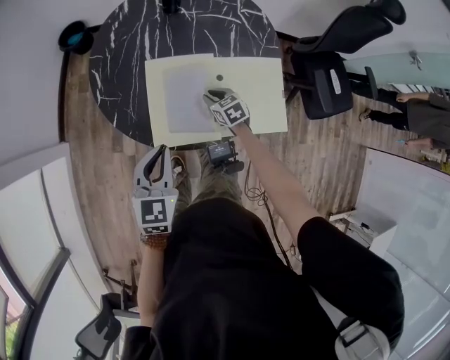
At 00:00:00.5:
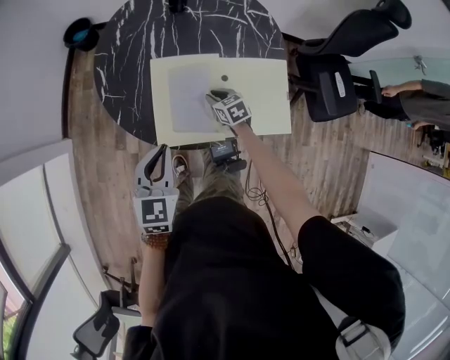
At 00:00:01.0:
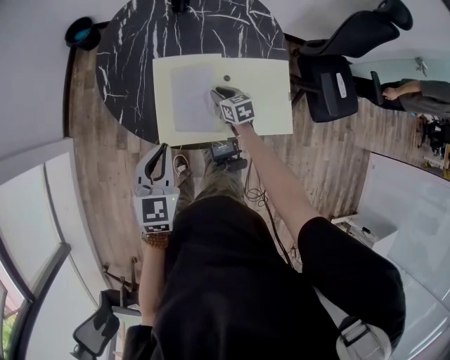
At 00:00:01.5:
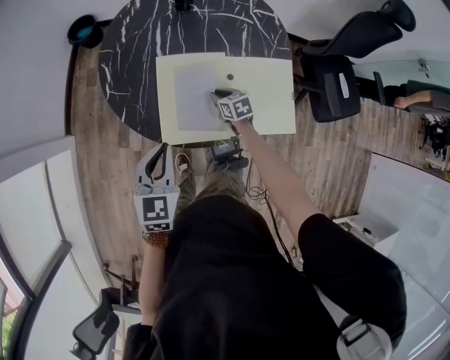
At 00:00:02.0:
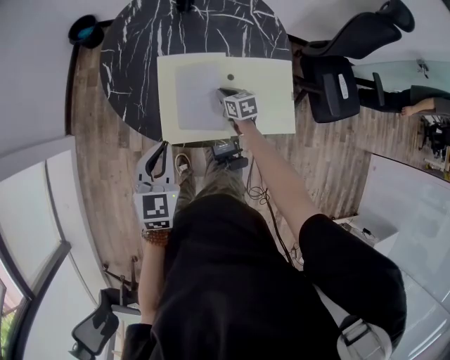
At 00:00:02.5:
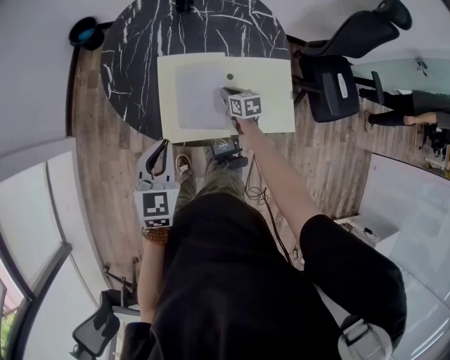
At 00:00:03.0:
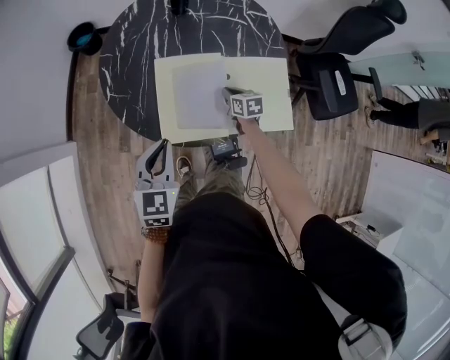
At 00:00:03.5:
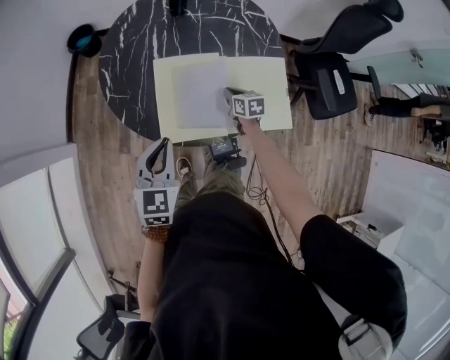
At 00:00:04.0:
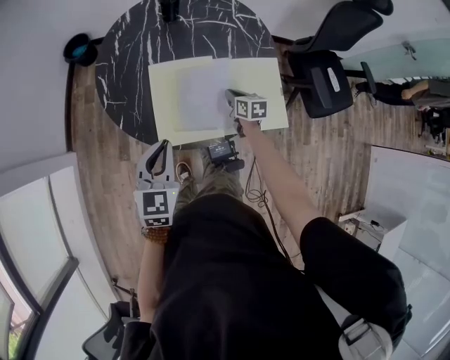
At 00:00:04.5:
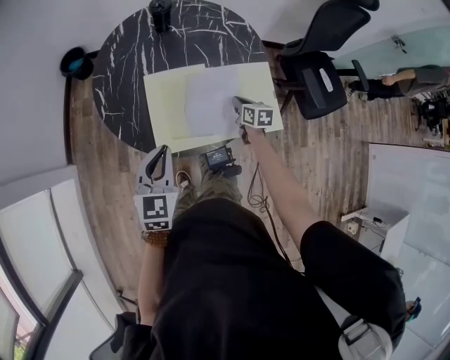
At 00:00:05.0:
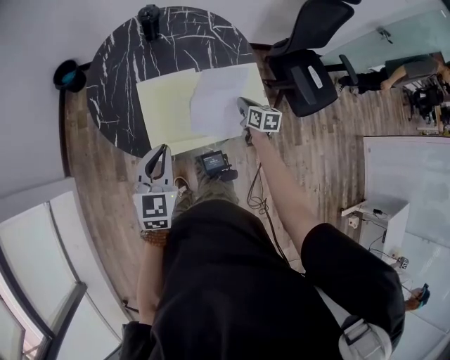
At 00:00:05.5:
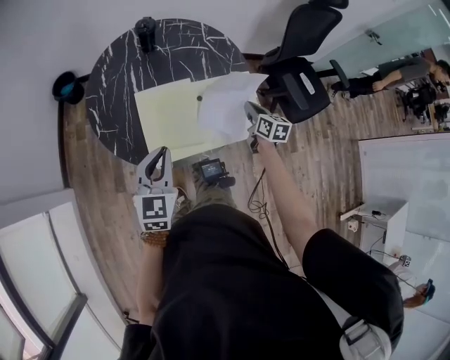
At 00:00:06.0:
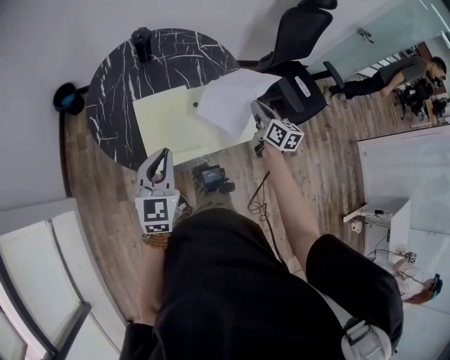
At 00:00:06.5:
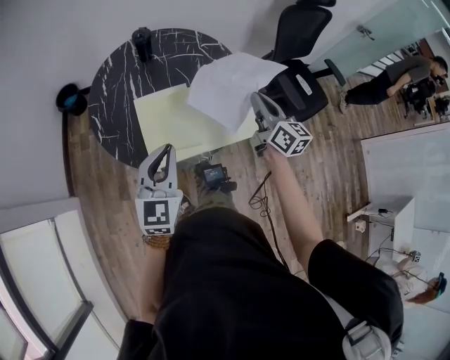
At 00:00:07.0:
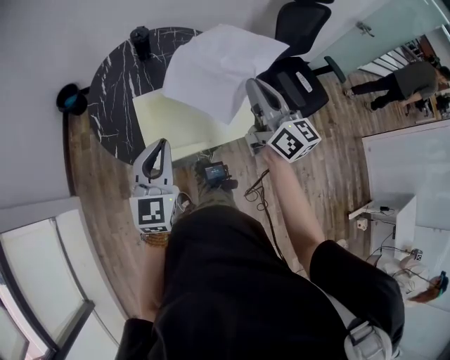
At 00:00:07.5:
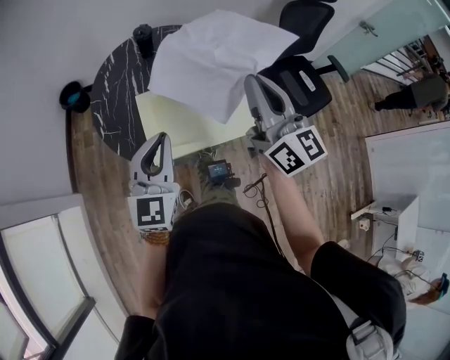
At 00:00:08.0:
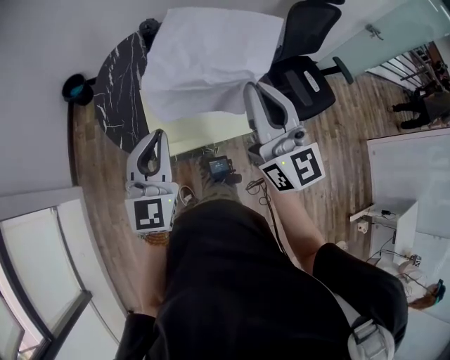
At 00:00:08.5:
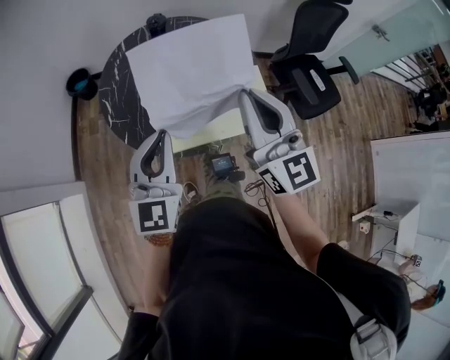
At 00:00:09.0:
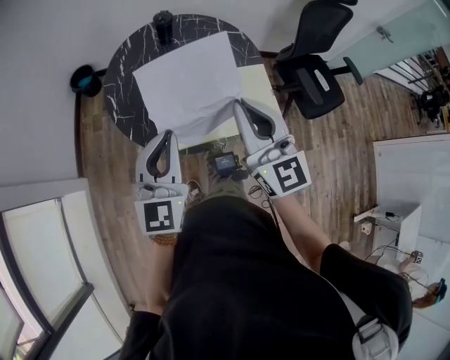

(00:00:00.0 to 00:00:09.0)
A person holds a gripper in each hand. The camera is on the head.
00:00:00.0 - 00:00:02.0: The grippers move only a little.
00:00:02.0 - 00:00:04.5: The right gripper shifts roughly 10 cm to the right and upward, and rotates roughly 20 degrees.
00:00:04.5 - 00:00:07.0: The right gripper heads upward, covering some 40 cm, and tilts its fingers some 50 degrees upward; the left gripper travels upward by about 10 cm.
00:00:07.0 - 00:00:09.0: The right gripper moves to the left and backward, about 15 cm, and swivels approximately 30 degrees. The left gripper ends up approximately 5 cm from where it was.

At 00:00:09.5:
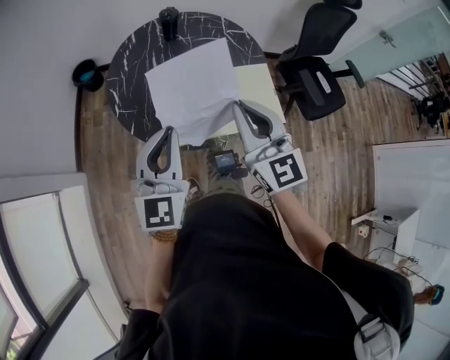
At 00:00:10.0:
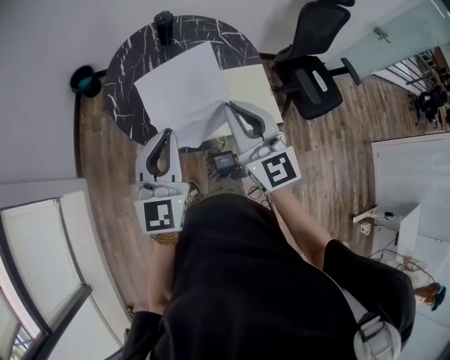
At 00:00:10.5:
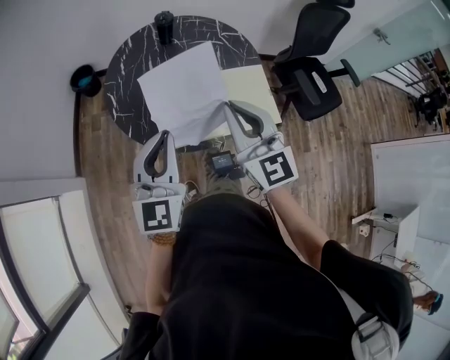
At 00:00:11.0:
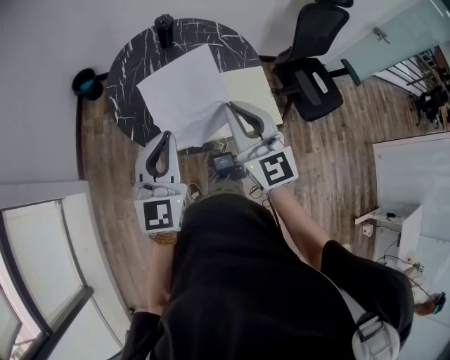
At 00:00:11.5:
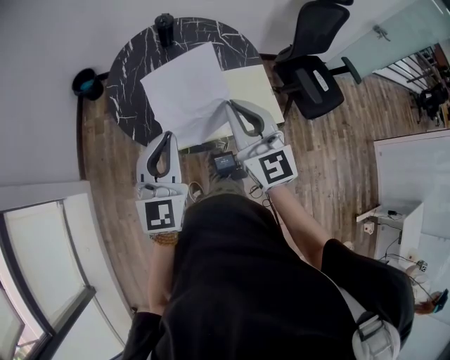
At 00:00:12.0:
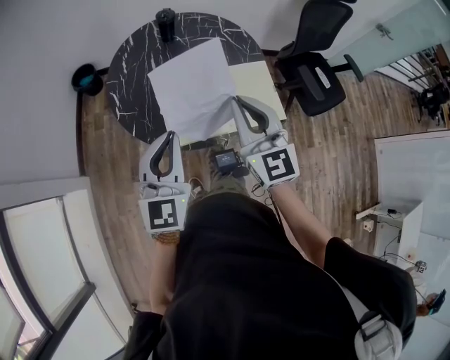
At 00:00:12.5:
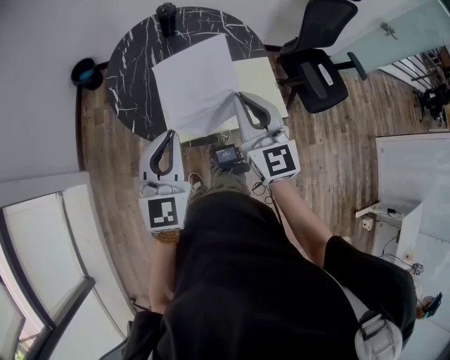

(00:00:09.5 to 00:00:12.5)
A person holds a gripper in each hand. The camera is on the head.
00:00:09.5 - 00:00:11.0: The two grippers keep their place.
00:00:11.0 - 00:00:12.5: The grippers move only a little.

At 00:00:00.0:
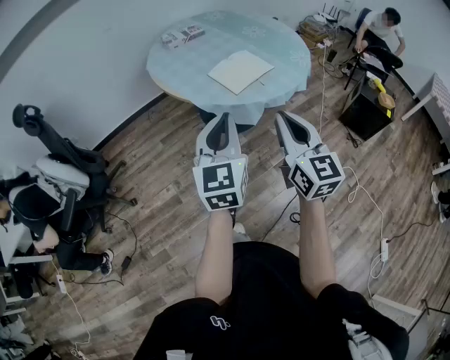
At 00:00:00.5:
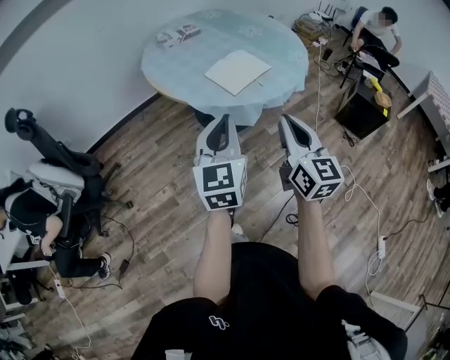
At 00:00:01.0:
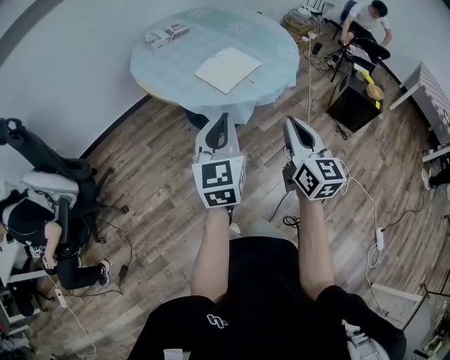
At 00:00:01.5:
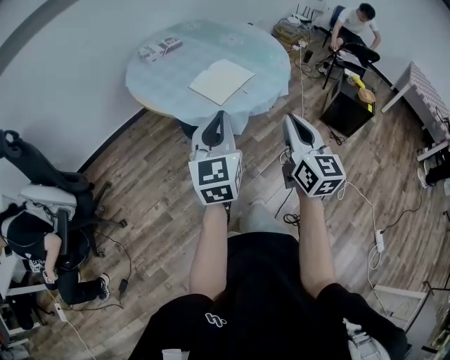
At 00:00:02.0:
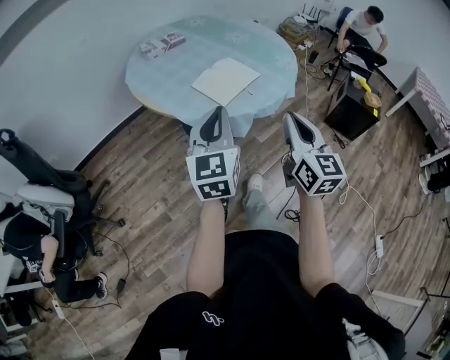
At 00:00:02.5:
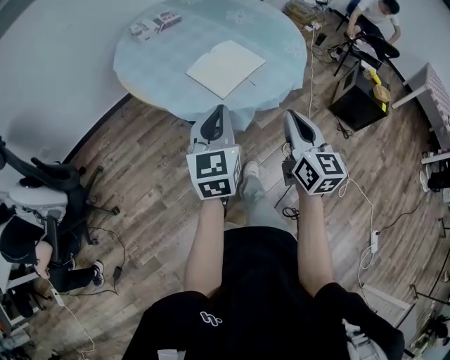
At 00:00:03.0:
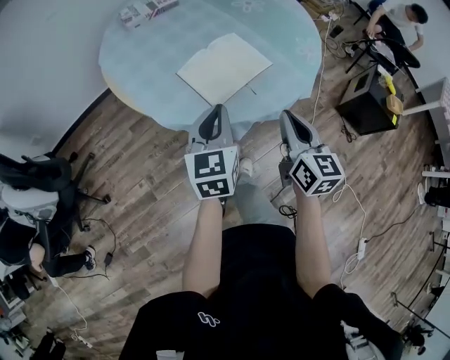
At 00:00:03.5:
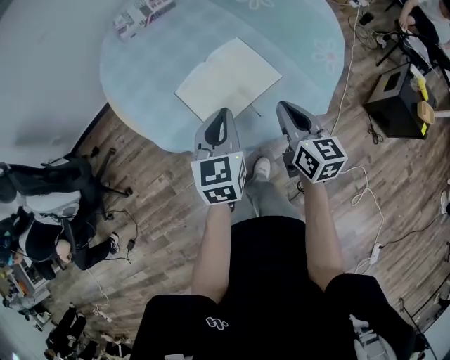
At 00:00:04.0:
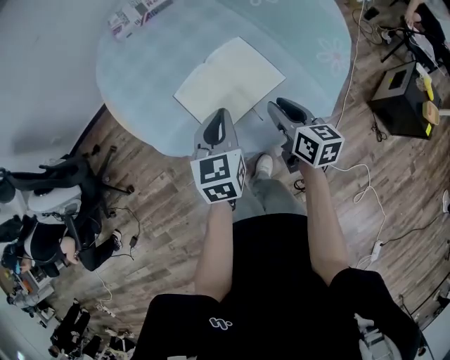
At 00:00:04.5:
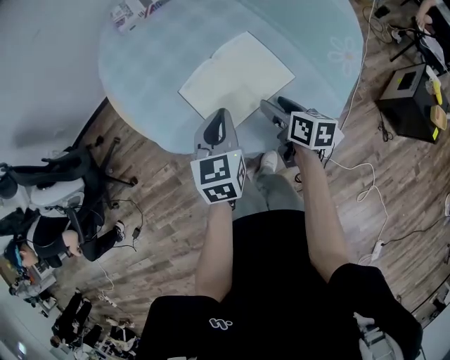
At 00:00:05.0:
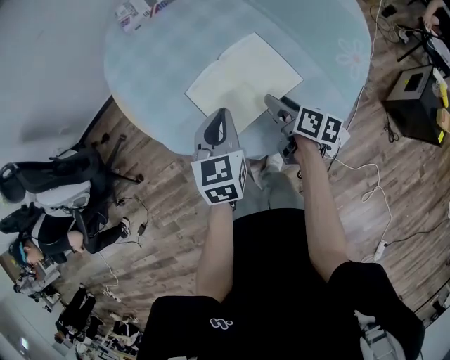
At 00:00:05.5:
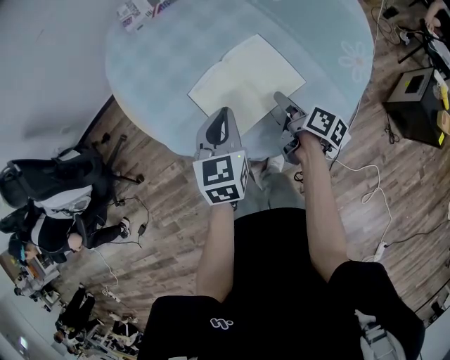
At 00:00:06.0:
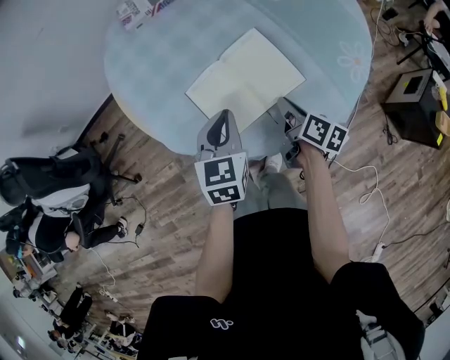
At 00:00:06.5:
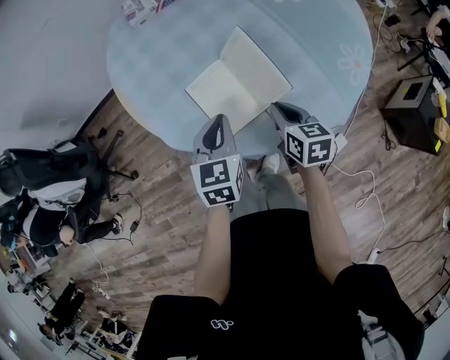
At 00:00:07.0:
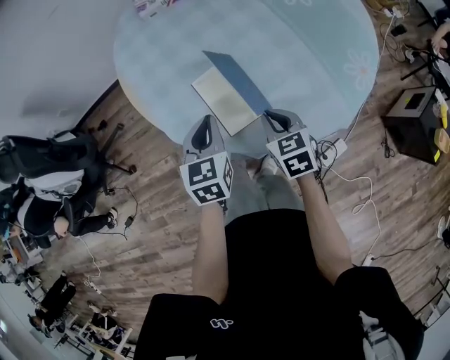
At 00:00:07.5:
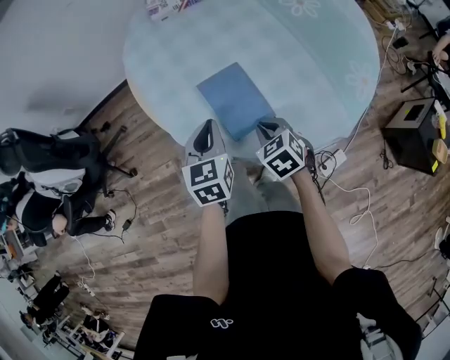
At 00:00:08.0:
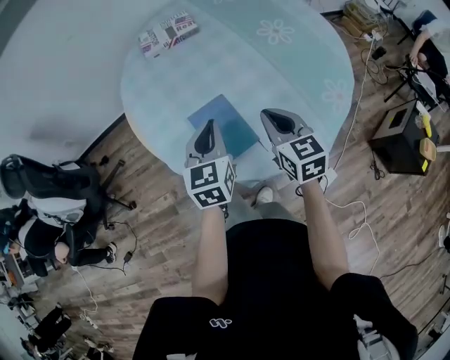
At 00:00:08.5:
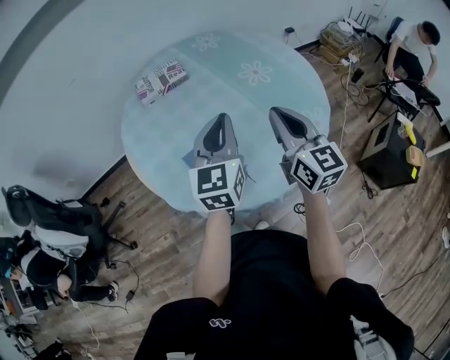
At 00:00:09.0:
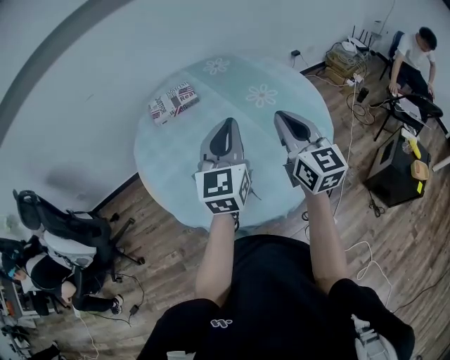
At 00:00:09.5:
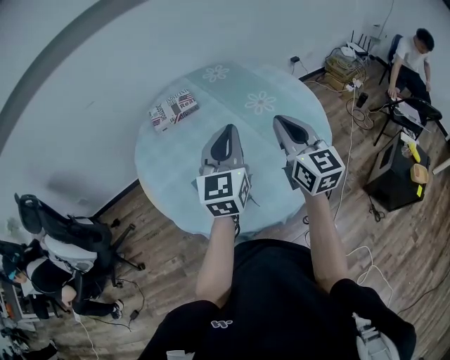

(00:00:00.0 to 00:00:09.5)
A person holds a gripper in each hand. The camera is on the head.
00:00:00.0 - 00:00:02.0: Both grippers travel together forward, approximately 10 cm.
00:00:02.0 - 00:00:04.0: Both grippers move forward and downward, some 40 cm. The right gripper rotates some 40 degrees, and opens up. The left gripper changes its angle by roughly 30 degrees.
00:00:04.0 - 00:00:05.5: The right gripper travels downward by about 5 cm, and twists roughly 40 degrees clockwise, seen from behind.
00:00:05.5 - 00:00:07.5: The two grippers go roughly 10 cm to the left. The right gripper rotates around the line of its fingers by approximately 90 degrees, counterclockwise from behind, and closes its fingers.
00:00:07.5 - 00:00:09.5: Both grippers move upward and to the right, approximately 35 cm. The right gripper tilts its fingers roughly 60 degrees upward. Meanwhile the left gripper angles its fingers upward, by about 30 degrees.

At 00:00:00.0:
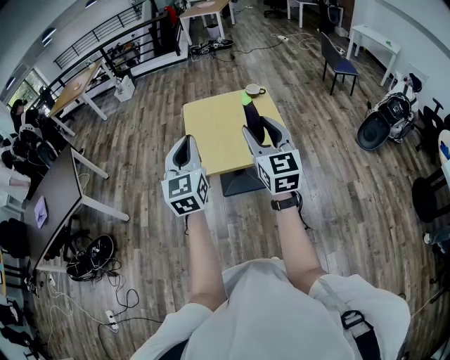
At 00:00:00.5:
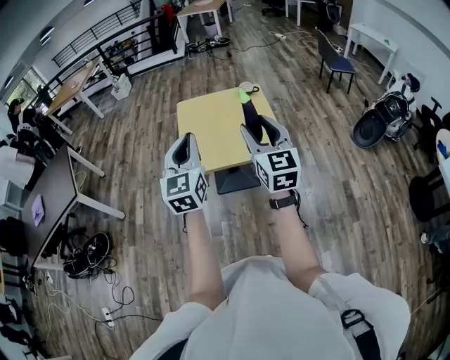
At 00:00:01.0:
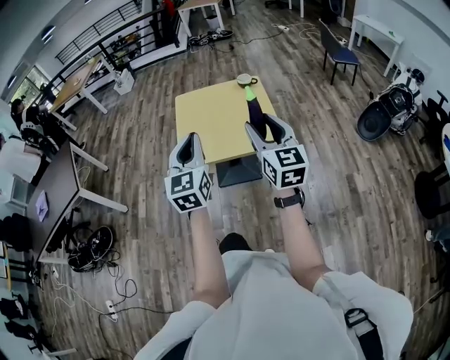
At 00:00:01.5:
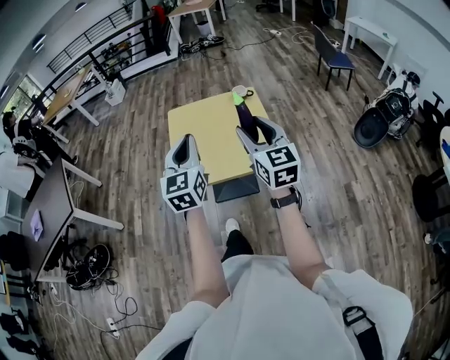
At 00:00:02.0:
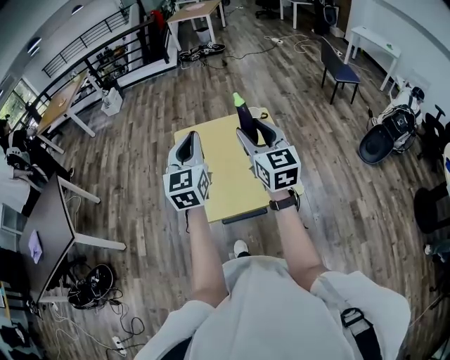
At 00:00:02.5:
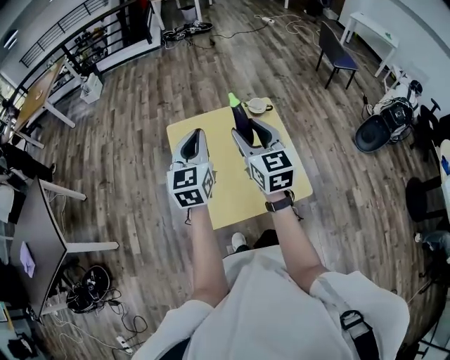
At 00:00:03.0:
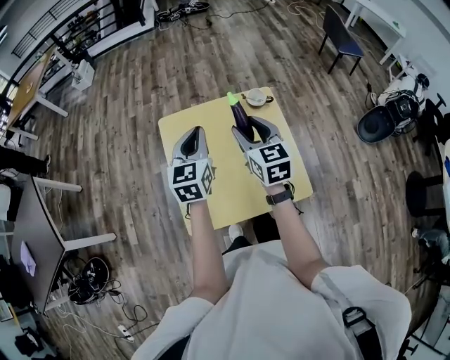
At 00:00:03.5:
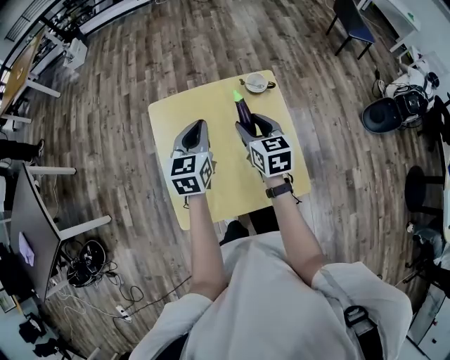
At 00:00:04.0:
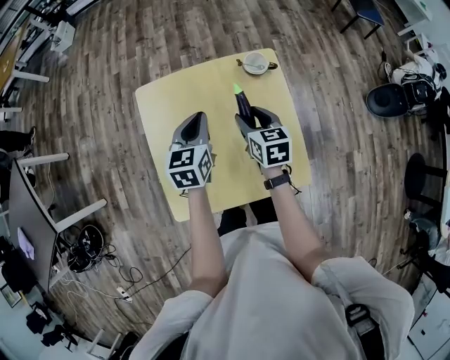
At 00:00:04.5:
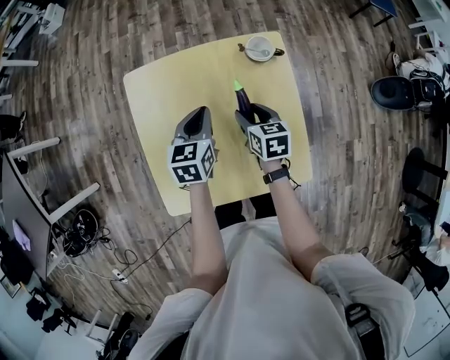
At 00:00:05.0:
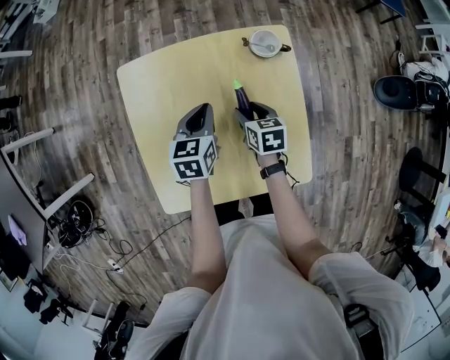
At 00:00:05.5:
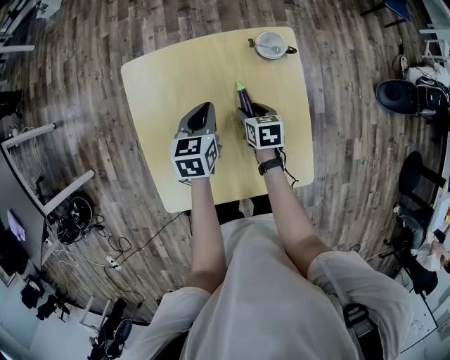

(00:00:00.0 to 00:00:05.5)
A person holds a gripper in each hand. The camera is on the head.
00:00:00.0 - 00:00:02.0: Both grippers travel together forward, roughly 25 cm.
00:00:02.0 - 00:00:03.5: The right gripper moves downward and forward, about 30 cm, and turns by some 30 degrees. Meanwhile the left gripper shifts some 30 cm forward and downward, and swivels about 30 degrees.
00:00:03.5 - 00:00:05.5: Both grippers travel together downward, some 20 cm. The right gripper swivels about 30 degrees, while the left gripper changes its angle by about 20 degrees.
